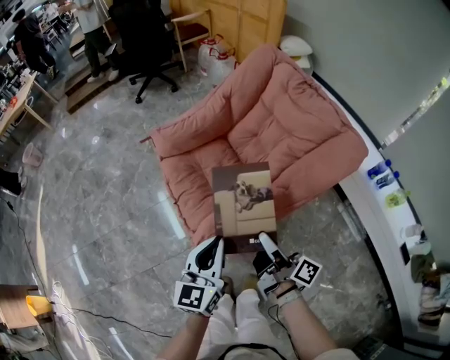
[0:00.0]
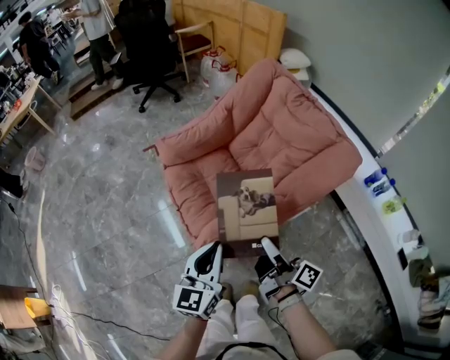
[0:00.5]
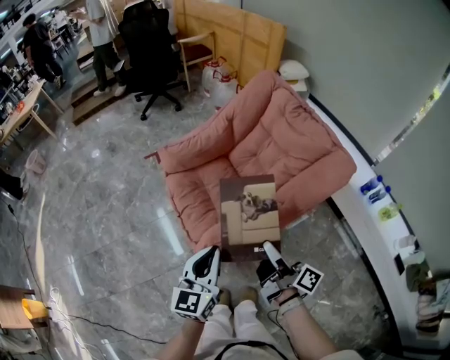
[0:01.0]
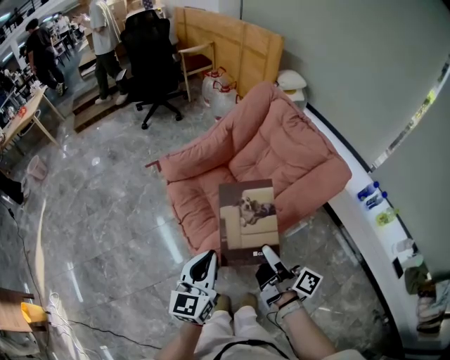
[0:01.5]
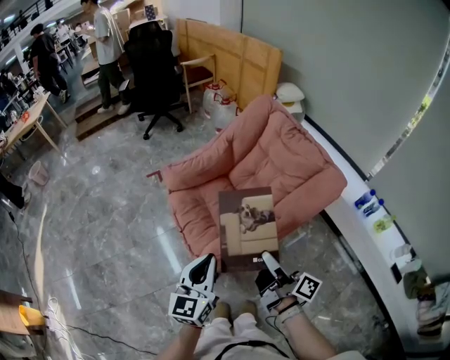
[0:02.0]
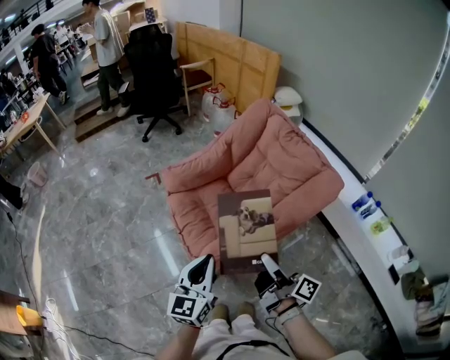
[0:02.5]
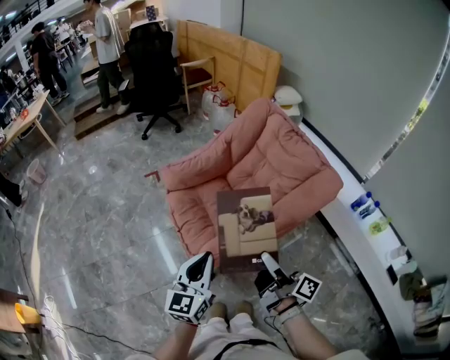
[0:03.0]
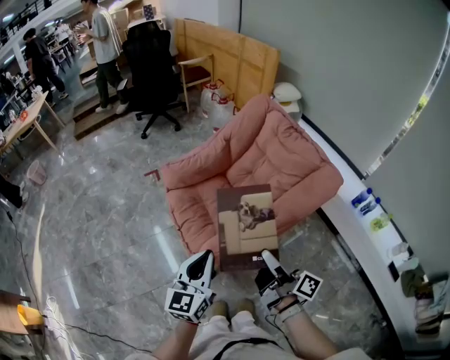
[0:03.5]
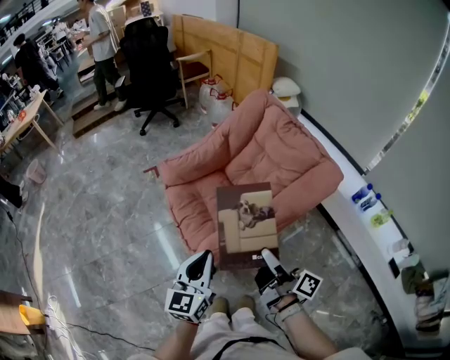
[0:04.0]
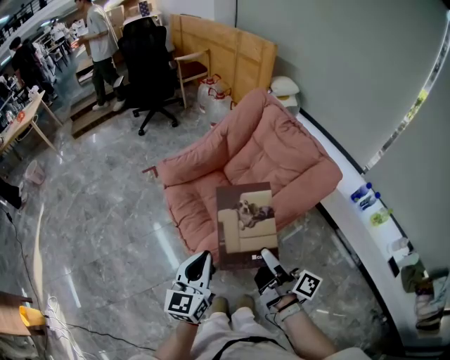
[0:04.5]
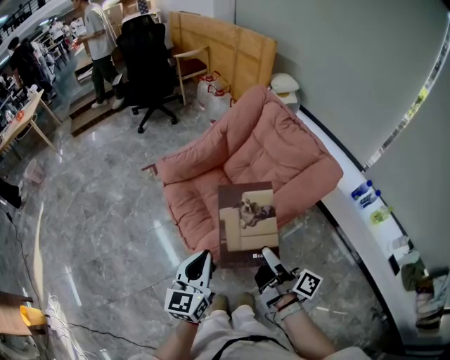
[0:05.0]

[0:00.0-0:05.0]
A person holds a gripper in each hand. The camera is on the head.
0:00.0 to 0:02.5: Both grippers travel together upward, about 10 cm.
0:02.5 to 0:05.0: The grippers make only small movements.

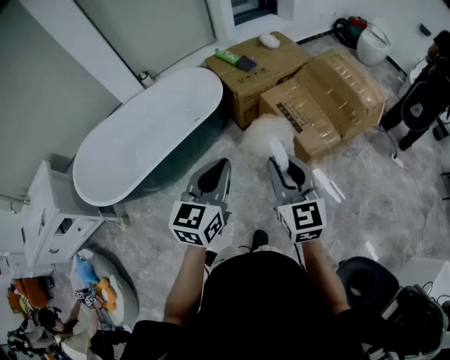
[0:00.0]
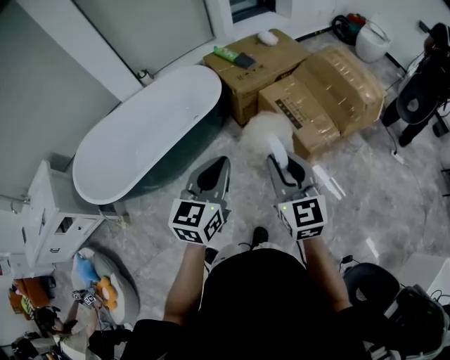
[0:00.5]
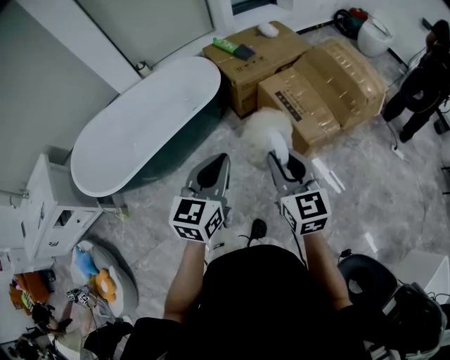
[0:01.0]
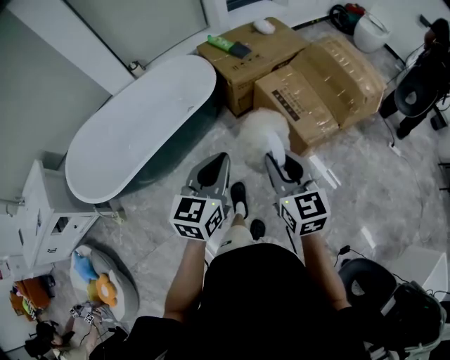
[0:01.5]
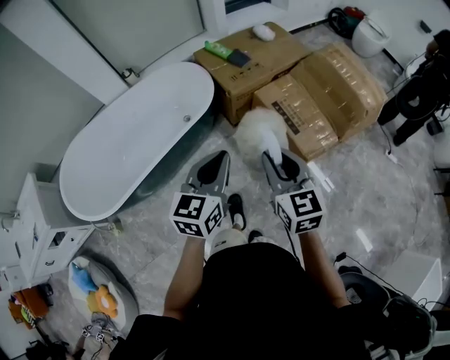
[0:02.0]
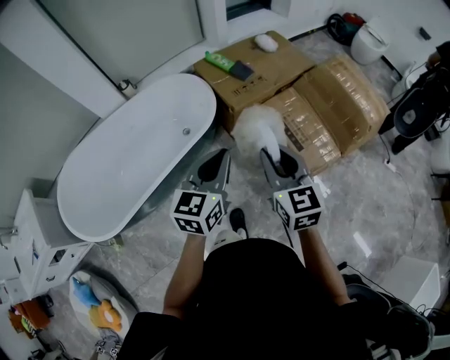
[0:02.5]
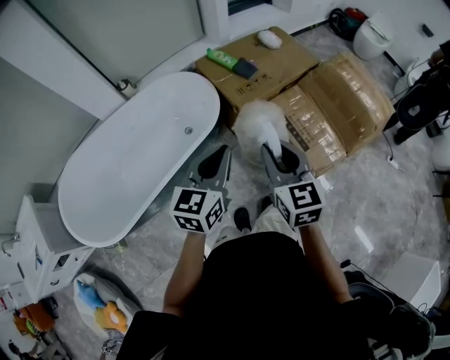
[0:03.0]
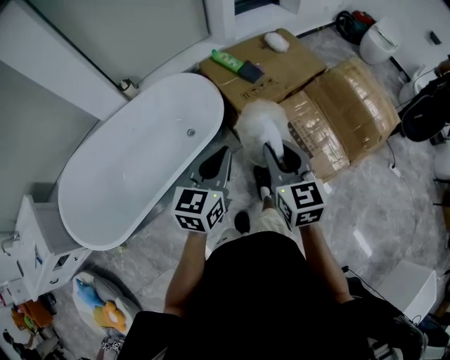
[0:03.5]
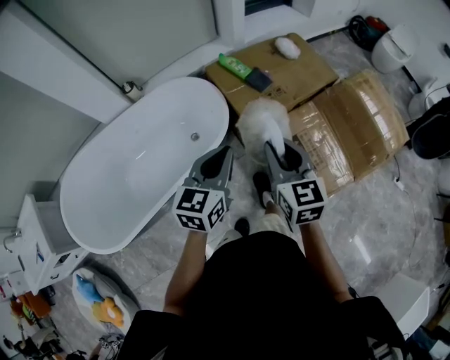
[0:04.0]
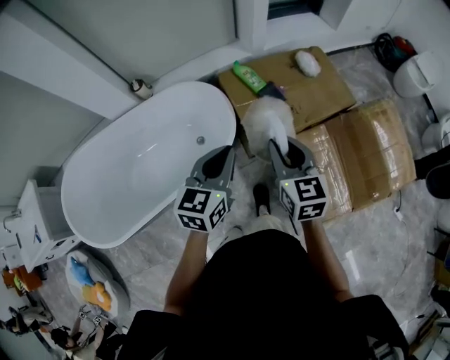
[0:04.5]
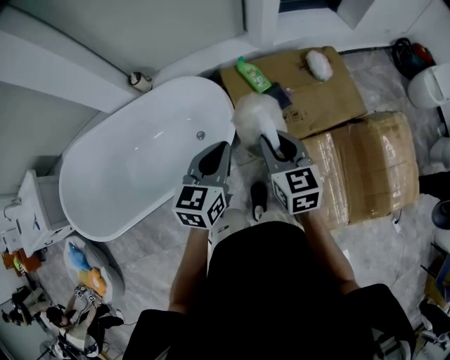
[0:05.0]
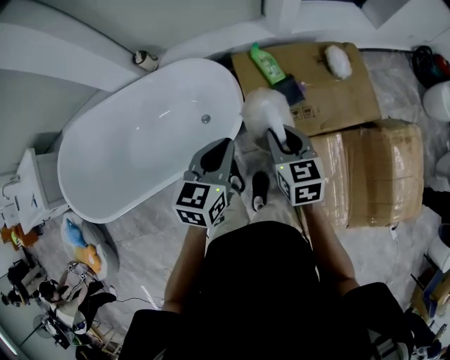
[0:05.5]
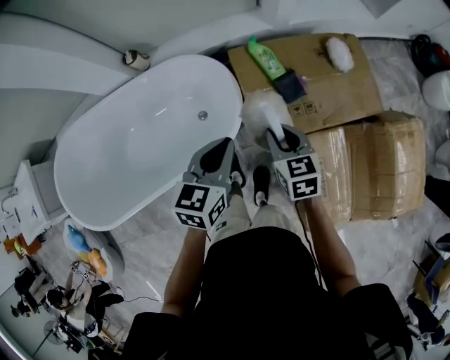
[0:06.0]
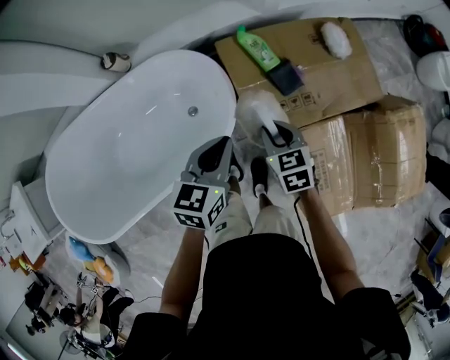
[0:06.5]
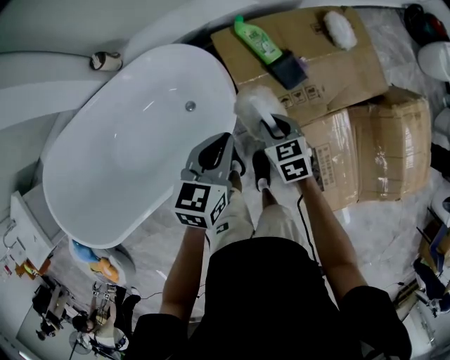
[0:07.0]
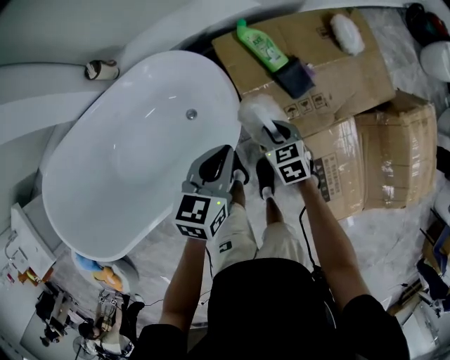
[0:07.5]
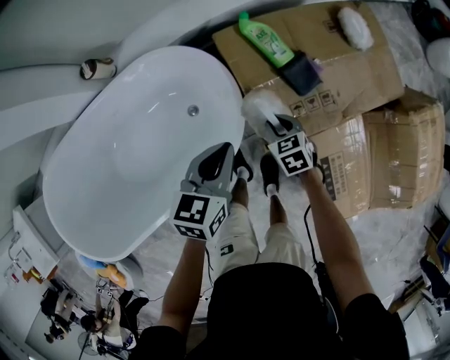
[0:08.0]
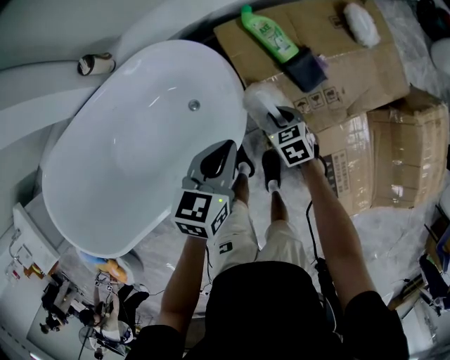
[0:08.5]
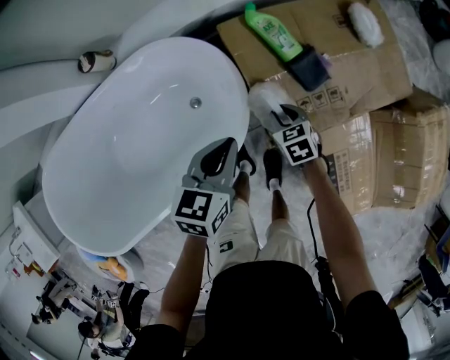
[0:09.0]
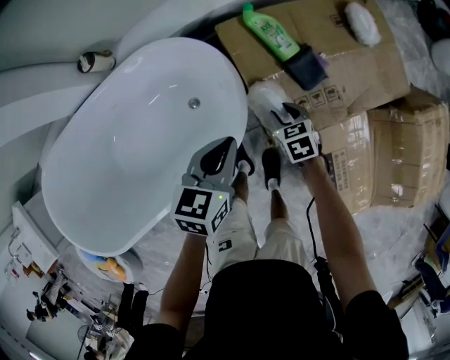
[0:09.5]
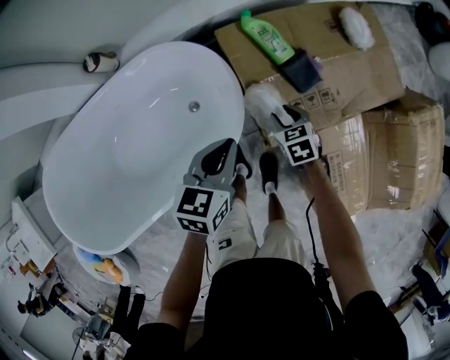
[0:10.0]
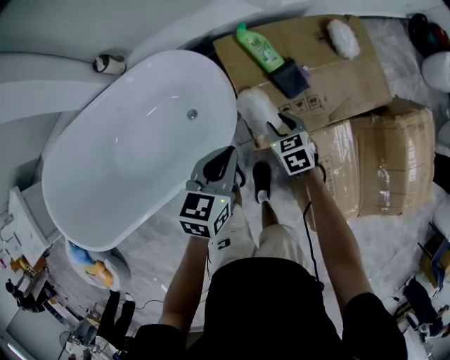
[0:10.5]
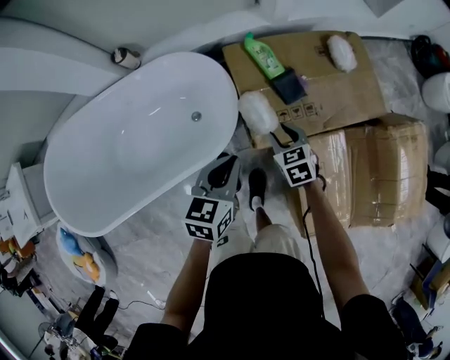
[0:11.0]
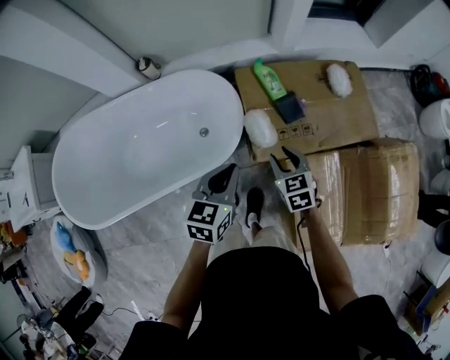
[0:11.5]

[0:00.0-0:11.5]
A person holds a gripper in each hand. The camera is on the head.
0:00.0 to 0:02.0: The two grippers go approximately 10 cm forward.
0:02.0 to 0:04.0: The two grippers go about 30 cm forward.
0:04.0 to 0:06.0: The right gripper travels forward and downward by roughly 35 cm, and swivels about 30 degrees, while the left gripper shifts some 25 cm forward.
0:06.0 to 0:07.5: The right gripper heads downward, covering some 20 cm, while the left gripper shifts about 15 cm downward and forward.
0:07.5 to 0:09.5: The right gripper moves downward, some 5 cm.
0:09.5 to 0:11.5: The left gripper goes about 20 cm backward and upward. Meanwhile the right gripper moves upward and backward, approximately 25 cm, and swivels approximately 20 degrees.

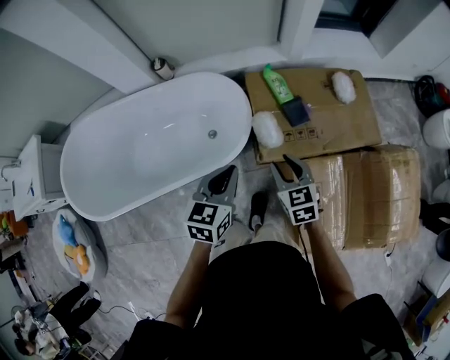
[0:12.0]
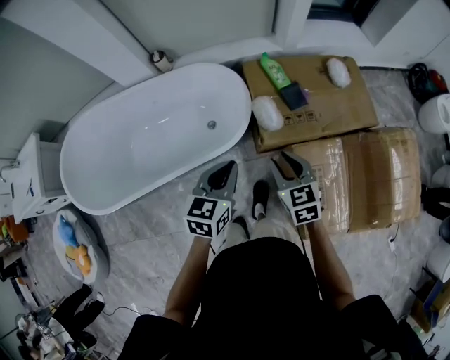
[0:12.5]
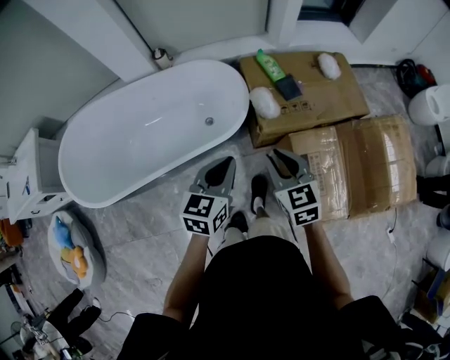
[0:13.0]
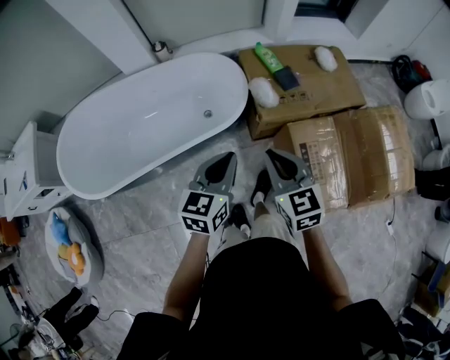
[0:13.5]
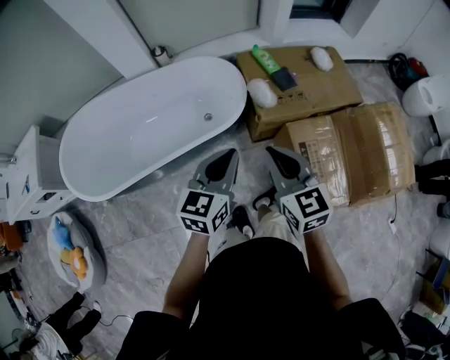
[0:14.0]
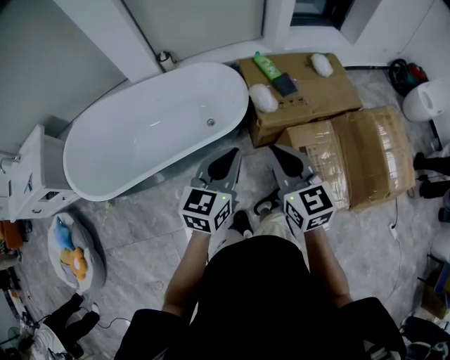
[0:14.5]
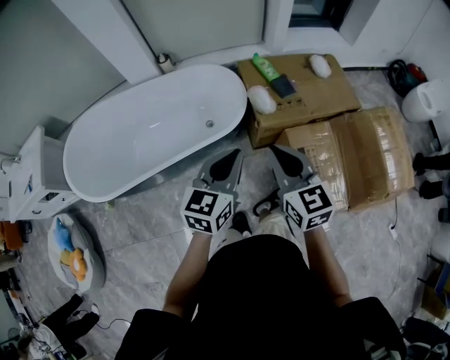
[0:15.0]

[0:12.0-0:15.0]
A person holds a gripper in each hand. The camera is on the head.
0:12.0 to 0:13.5: The left gripper goes about 20 cm backward, while the right gripper travels backward and upward by approximately 25 cm, and closes its fingers.
0:13.5 to 0:15.0: Both grippers travel together upward, roughly 5 cm.

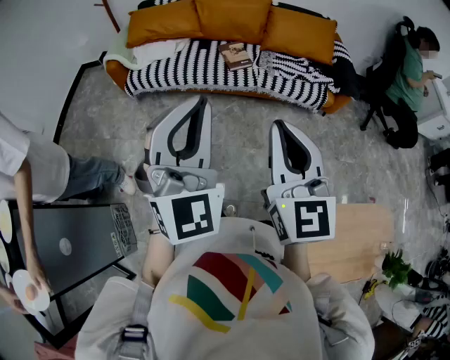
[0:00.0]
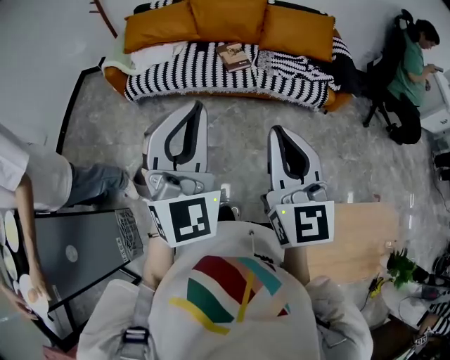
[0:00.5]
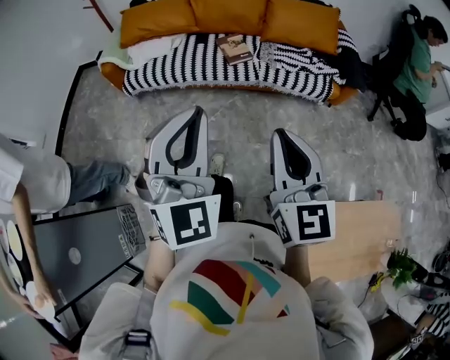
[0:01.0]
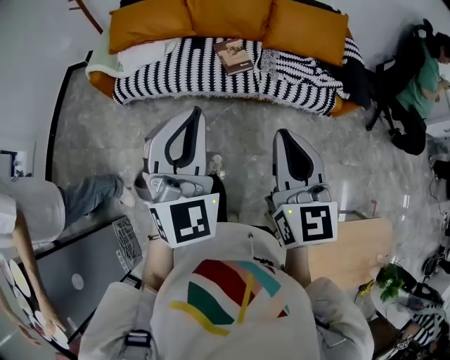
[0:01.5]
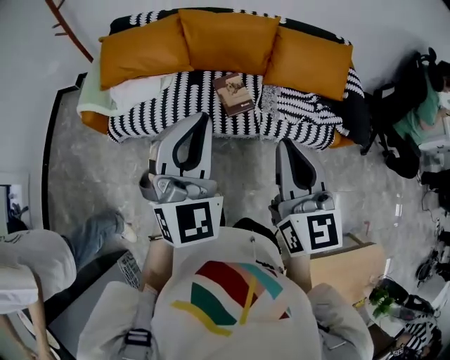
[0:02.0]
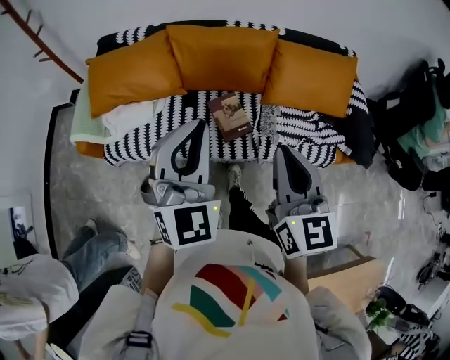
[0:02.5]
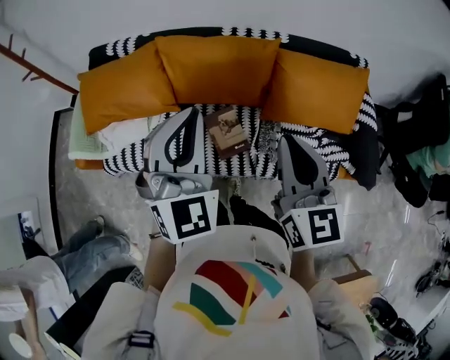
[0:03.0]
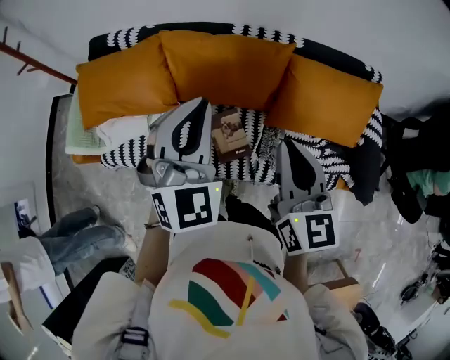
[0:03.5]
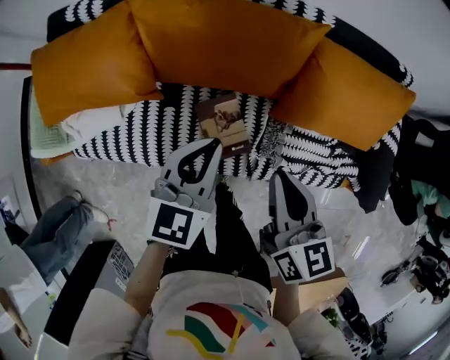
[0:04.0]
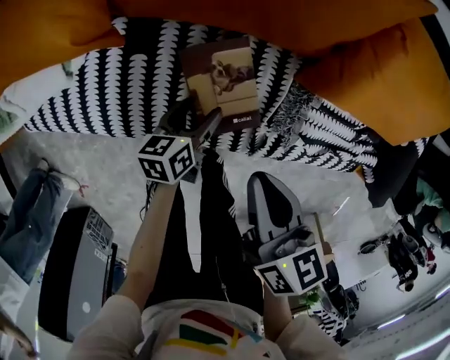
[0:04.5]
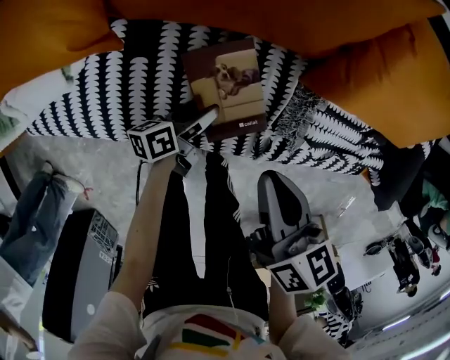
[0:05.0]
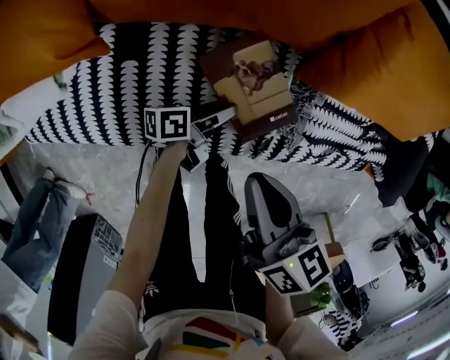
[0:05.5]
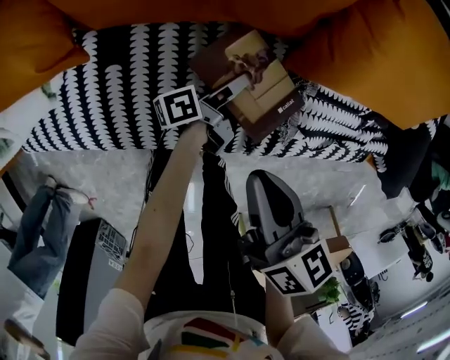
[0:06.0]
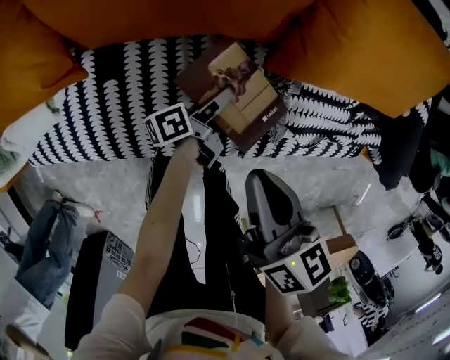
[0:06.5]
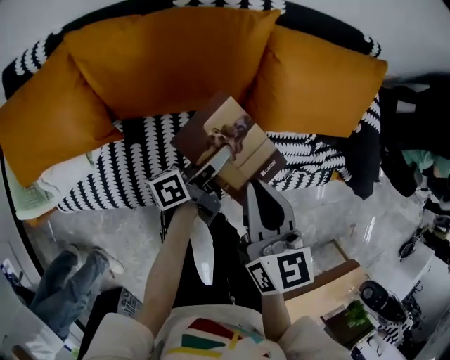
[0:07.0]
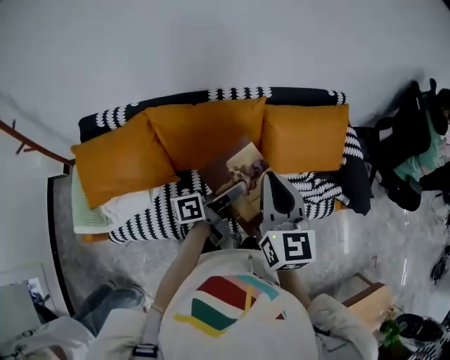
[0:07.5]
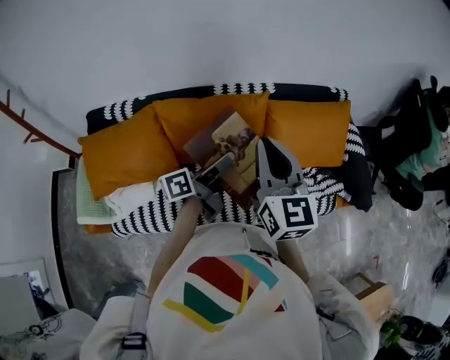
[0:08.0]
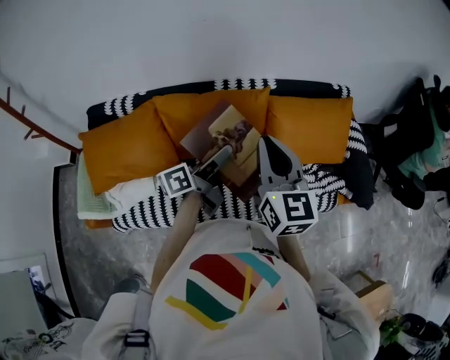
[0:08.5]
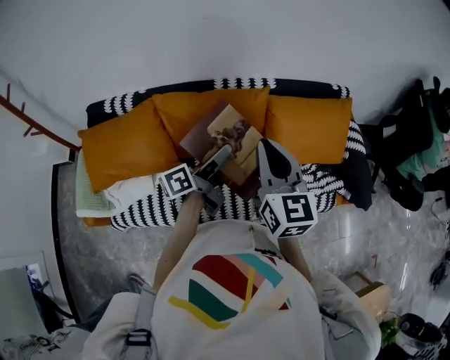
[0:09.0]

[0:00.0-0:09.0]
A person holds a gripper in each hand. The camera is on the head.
0:00.0 to 0:02.0: Both grippers move forward, some 40 cm.
0:02.0 to 0:04.5: Both grippers move downward and forward, approximately 60 cm. The right gripper angles its fingers downward, by some 30 degrees. Meanwhile the left gripper rotates around the line of its fingers by roughly 80 degrees, counterclockwise from behind, and opens up.
0:04.5 to 0:07.0: The right gripper shifts some 15 cm upward and forward, and turns by some 30 degrees, while the left gripper goes some 25 cm upward, forward and to the right, points its fingers some 40 degrees further upward, and closes.
0:07.0 to 0:09.0: Both grippers travel together upward, about 25 cm.
